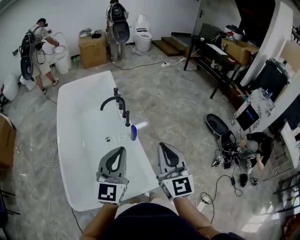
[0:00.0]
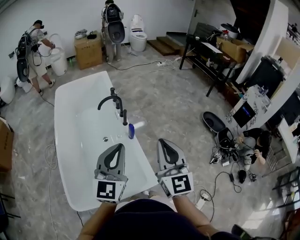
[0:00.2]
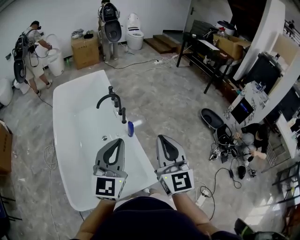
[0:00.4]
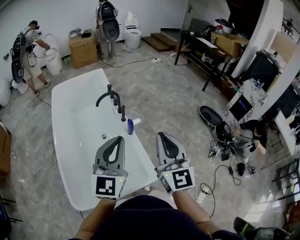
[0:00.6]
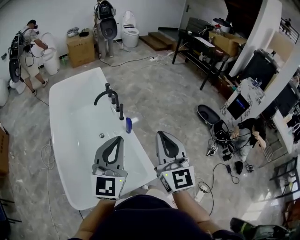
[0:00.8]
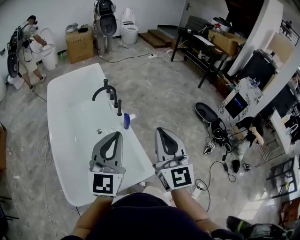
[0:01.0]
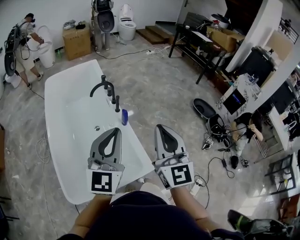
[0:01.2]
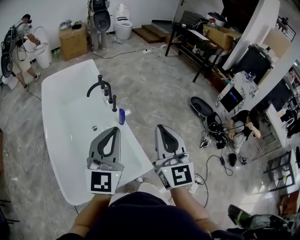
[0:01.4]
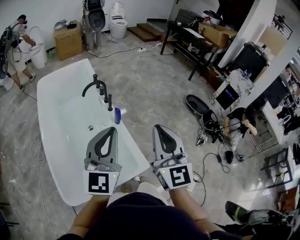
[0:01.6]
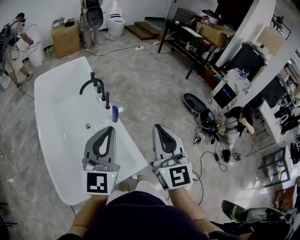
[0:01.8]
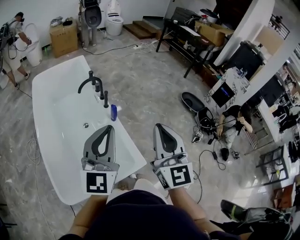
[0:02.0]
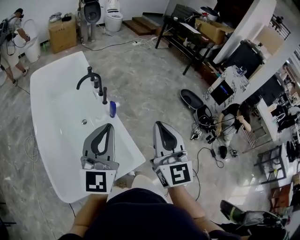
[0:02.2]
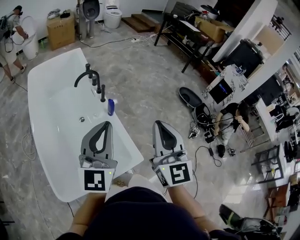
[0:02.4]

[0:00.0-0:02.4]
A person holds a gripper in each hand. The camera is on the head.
0:00.0 to 0:01.2: The left gripper changes place by roughly 5 cm; the right gripper shifts by roughly 5 cm.
0:01.2 to 0:02.4: There are only small adjustments of the grippers.

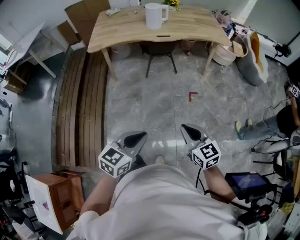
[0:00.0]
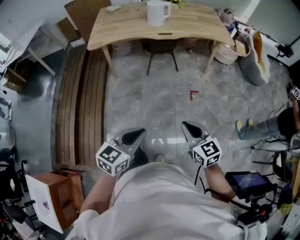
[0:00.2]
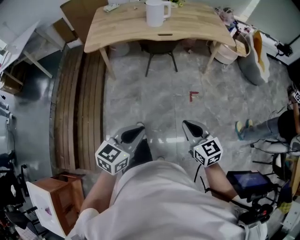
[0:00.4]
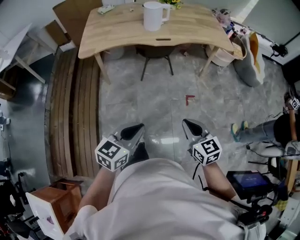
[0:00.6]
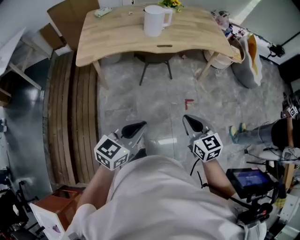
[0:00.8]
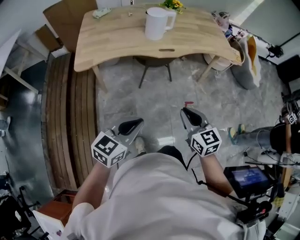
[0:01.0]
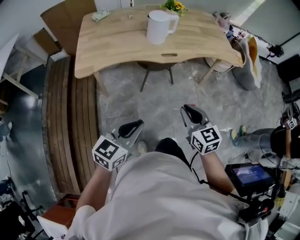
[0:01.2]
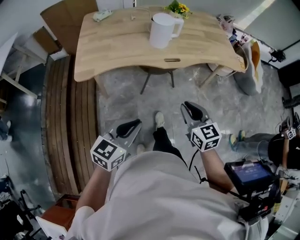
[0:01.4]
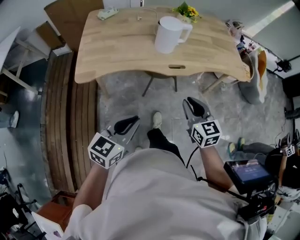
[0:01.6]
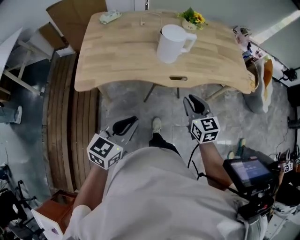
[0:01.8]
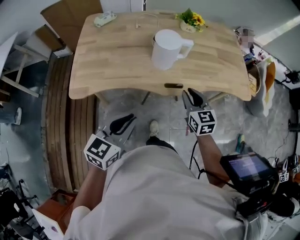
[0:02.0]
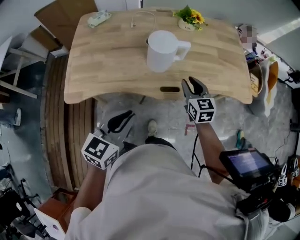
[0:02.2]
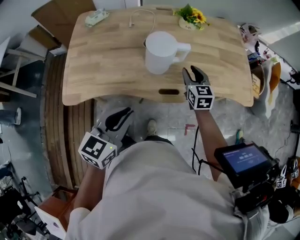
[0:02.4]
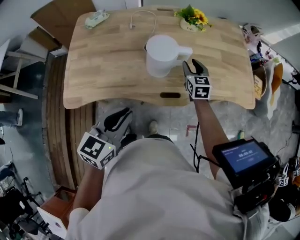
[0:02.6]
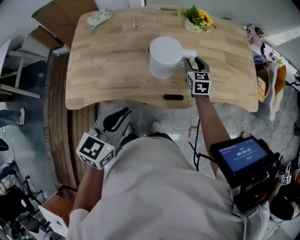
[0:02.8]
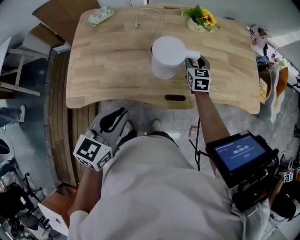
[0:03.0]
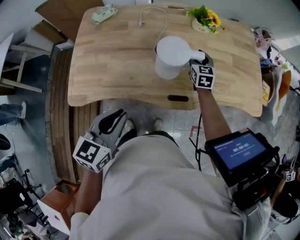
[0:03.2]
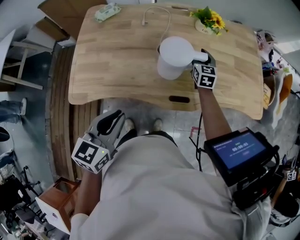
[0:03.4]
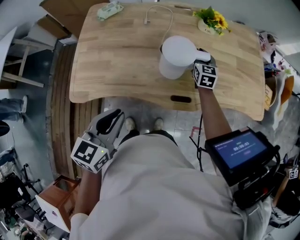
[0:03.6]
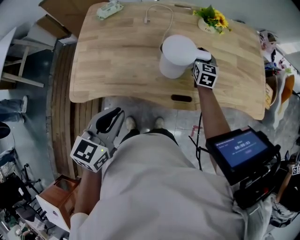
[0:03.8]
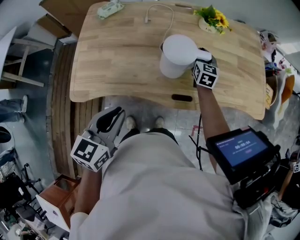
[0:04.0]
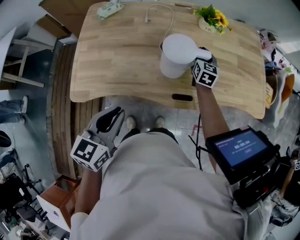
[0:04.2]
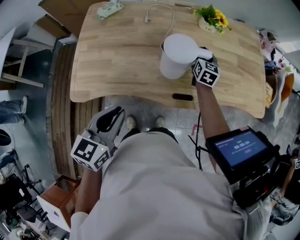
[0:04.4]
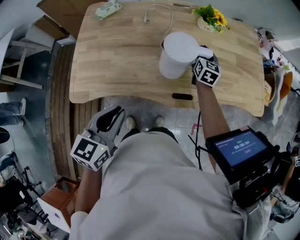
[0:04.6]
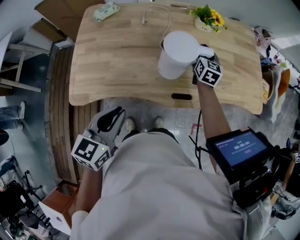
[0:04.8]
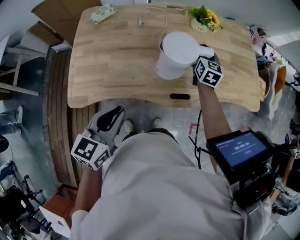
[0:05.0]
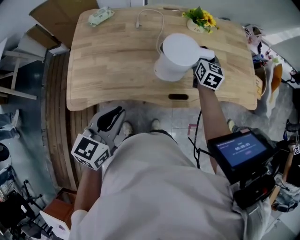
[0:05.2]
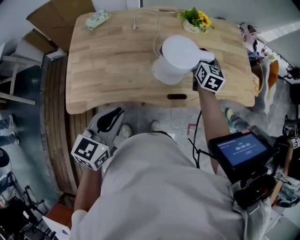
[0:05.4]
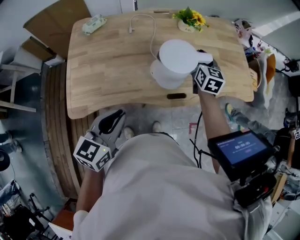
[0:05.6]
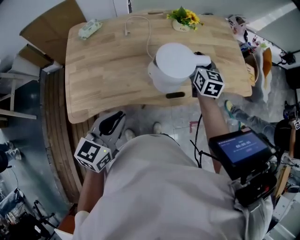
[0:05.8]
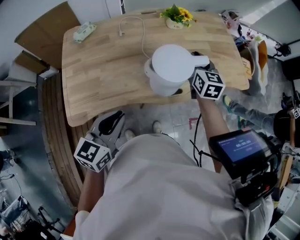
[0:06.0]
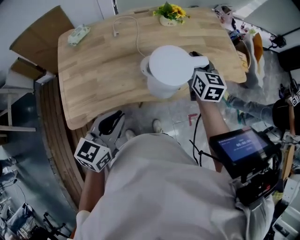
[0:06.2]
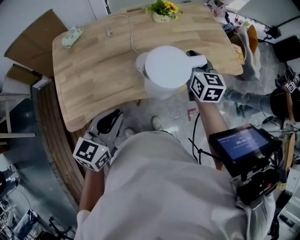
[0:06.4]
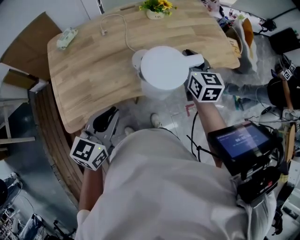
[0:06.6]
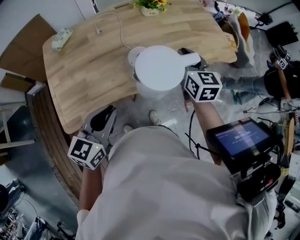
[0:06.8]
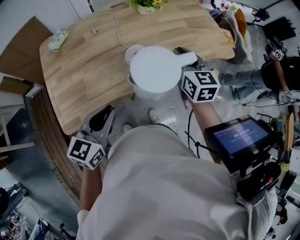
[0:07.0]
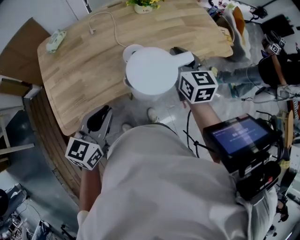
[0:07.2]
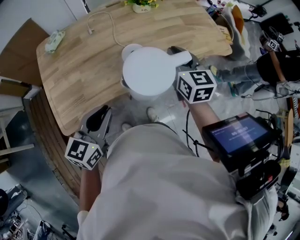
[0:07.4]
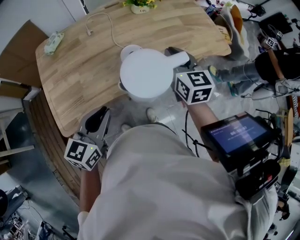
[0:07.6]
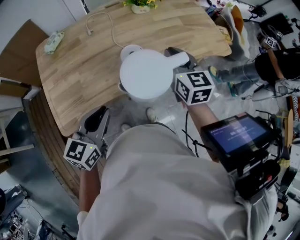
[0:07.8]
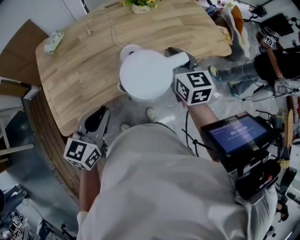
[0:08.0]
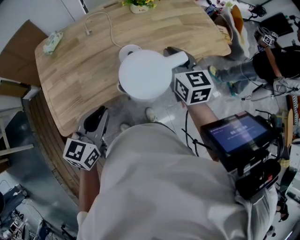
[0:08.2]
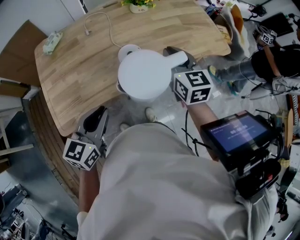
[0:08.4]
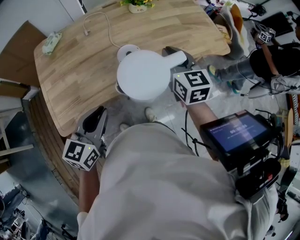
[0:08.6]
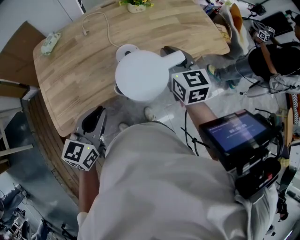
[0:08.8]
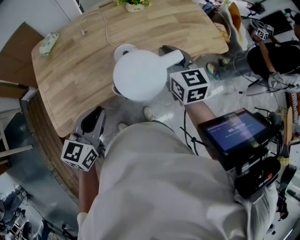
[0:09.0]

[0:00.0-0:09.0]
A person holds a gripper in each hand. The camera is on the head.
0:00.0 to 0:01.6: The pair of grippers is taken forward and to the left, about 50 cm.
0:01.6 to 0:03.0: The right gripper moves forward, approximately 50 cm, and opens up. The left gripper heads forward, covering approximately 30 cm.
0:03.0 to 0:04.4: The right gripper closes its fingers.
0:04.4 to 0:06.0: The right gripper shifts about 20 cm upward and backward.
0:06.0 to 0:07.6: The right gripper travels backward by approximately 10 cm.
0:07.6 to 0:09.0: The two grippers keep their place.

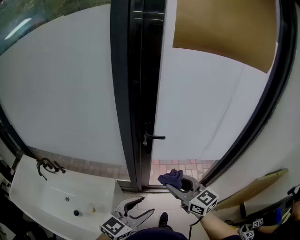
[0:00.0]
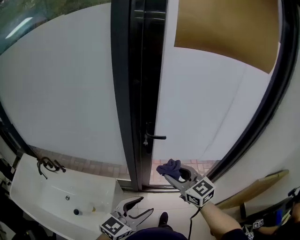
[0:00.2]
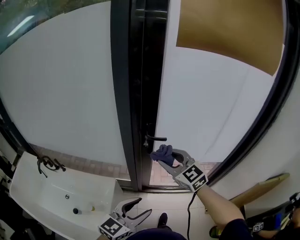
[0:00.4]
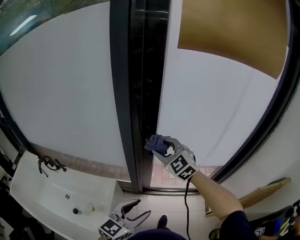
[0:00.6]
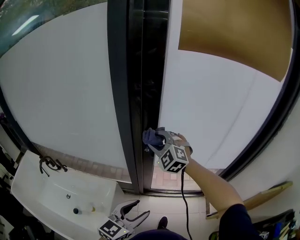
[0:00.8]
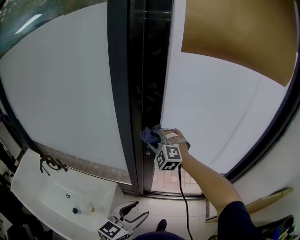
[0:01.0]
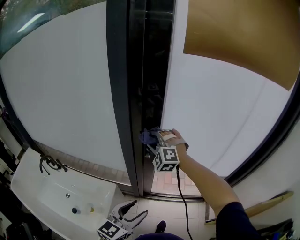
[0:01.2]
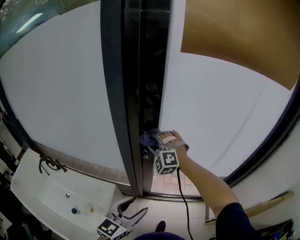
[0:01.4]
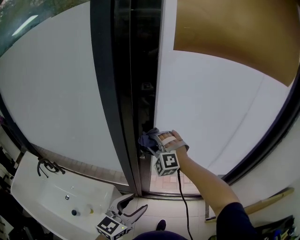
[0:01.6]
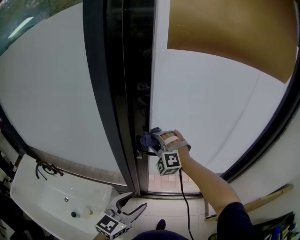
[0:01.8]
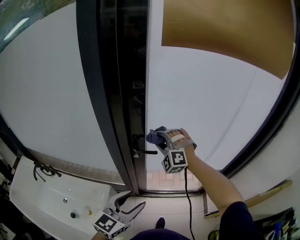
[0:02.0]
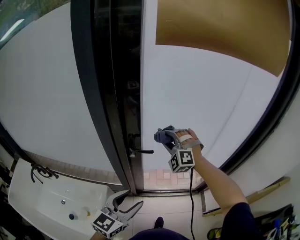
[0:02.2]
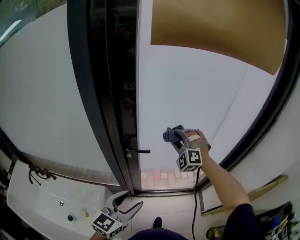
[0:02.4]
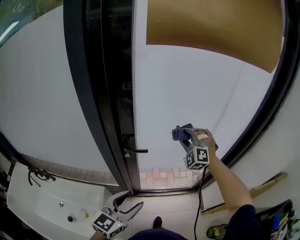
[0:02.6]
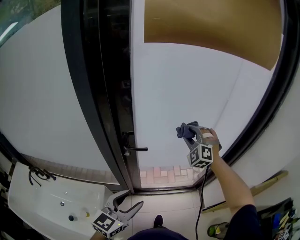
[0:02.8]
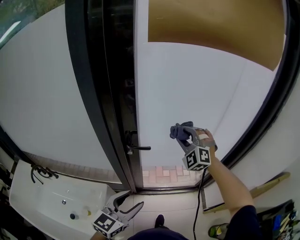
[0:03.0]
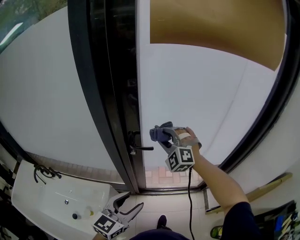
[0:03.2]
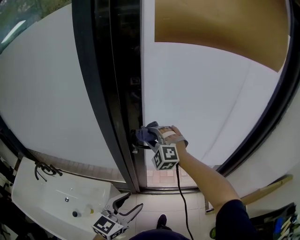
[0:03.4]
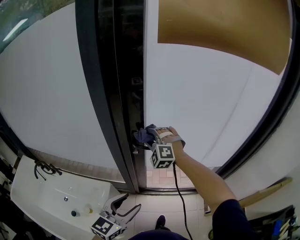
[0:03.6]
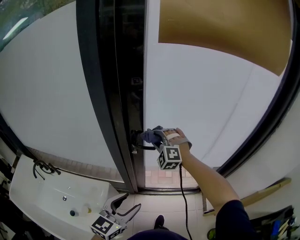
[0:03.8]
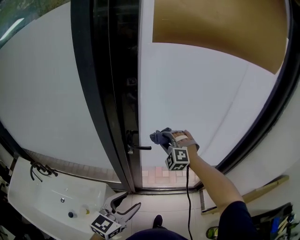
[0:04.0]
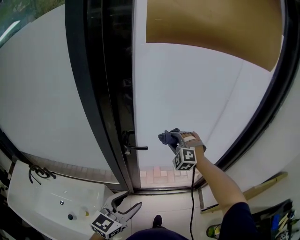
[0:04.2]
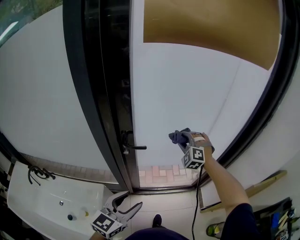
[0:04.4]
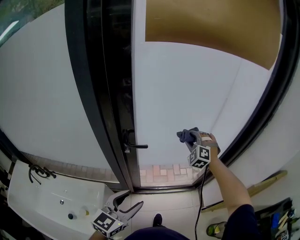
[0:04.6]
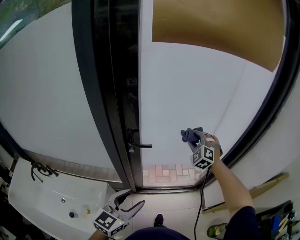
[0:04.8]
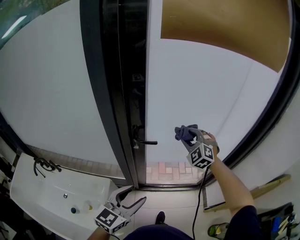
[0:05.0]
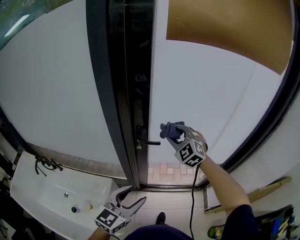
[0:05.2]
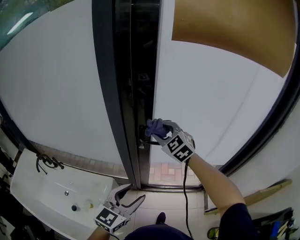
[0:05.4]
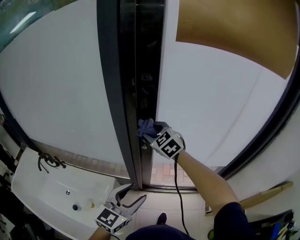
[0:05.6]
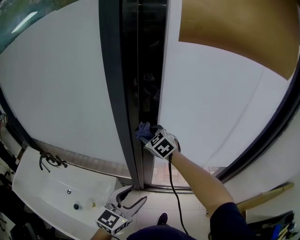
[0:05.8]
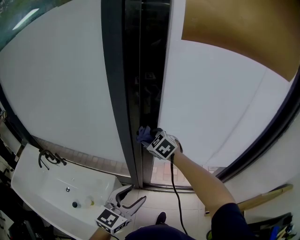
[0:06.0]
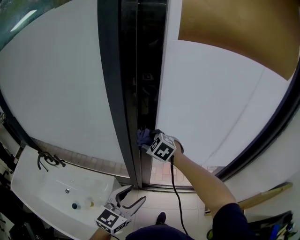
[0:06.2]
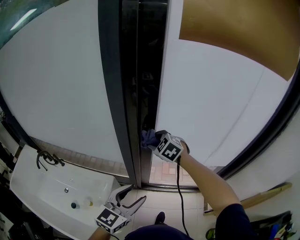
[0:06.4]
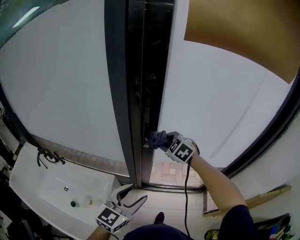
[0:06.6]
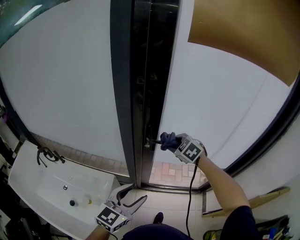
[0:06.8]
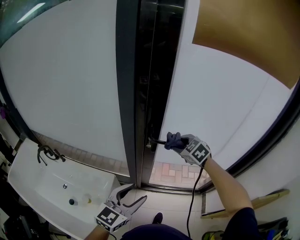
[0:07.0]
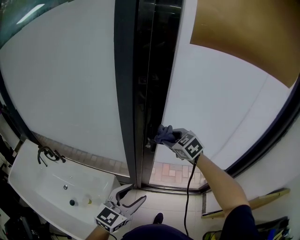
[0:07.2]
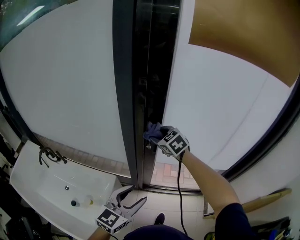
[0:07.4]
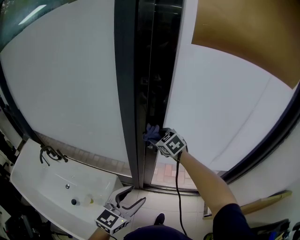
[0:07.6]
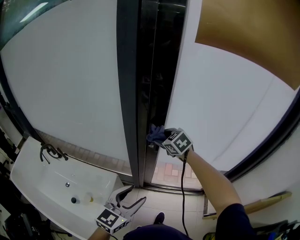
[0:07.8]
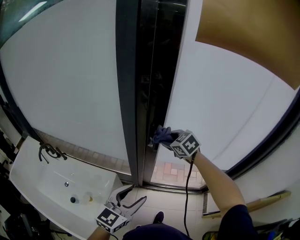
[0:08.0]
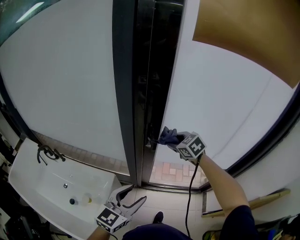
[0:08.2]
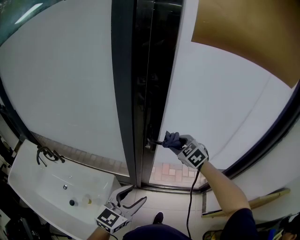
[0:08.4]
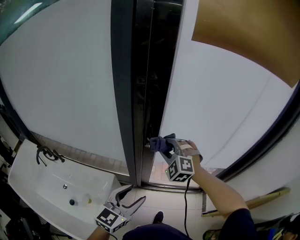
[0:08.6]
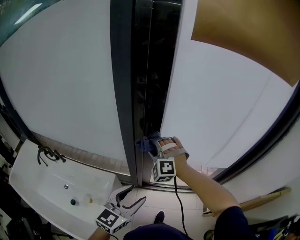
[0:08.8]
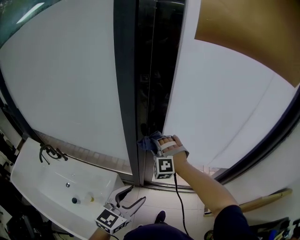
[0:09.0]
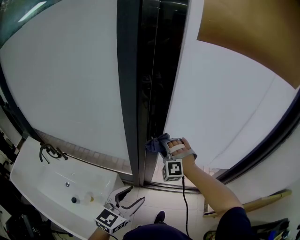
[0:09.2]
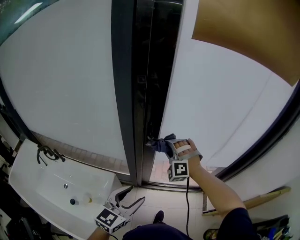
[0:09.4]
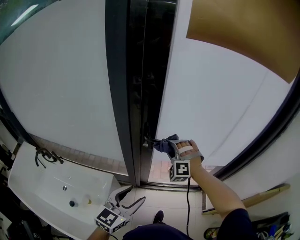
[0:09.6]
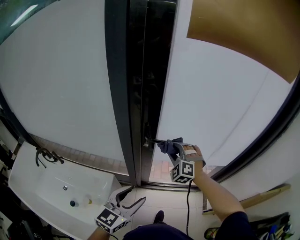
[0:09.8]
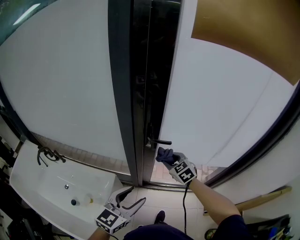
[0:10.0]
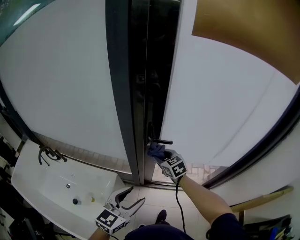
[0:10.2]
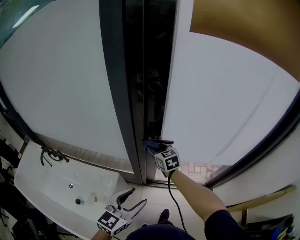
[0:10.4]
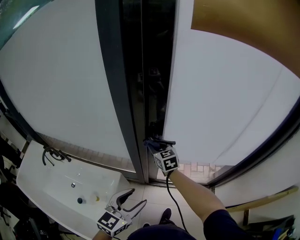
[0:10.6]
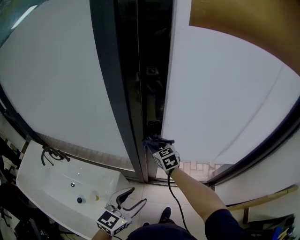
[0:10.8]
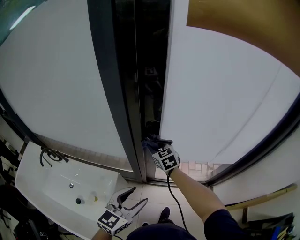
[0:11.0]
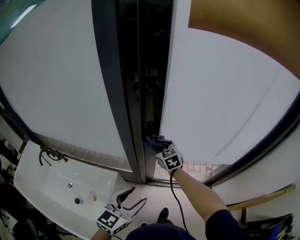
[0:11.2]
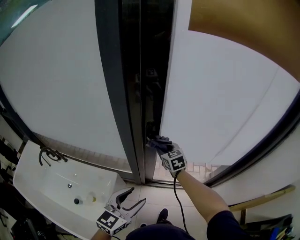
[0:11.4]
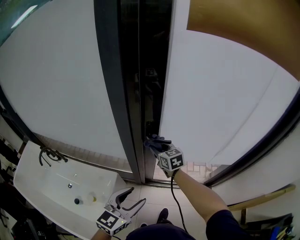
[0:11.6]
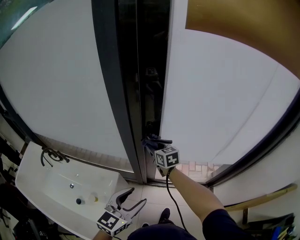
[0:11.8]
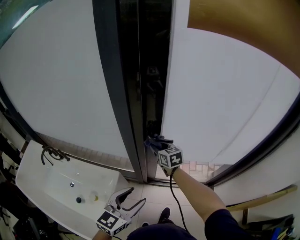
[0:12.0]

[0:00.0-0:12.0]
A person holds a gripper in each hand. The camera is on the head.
0:00.0 to 0:01.6: The left gripper shifts approximately 15 cm forward. Meanwhile the right gripper travels forward by roughly 30 cm, and twists some 80 degrees counterclockwise, seen from behind.
0:01.6 to 0:03.0: The right gripper travels to the right by about 20 cm, and swivels about 20 degrees.
0:03.0 to 0:04.4: The right gripper heads downward, covering roughly 5 cm, and travels to the left and back again, approximately 20 cm each way.
0:04.4 to 0:06.0: The right gripper goes upward and returns, some 10 cm each way, and changes its angle by approximately 50 degrees. Meanwhile the left gripper ends up approximately 5 cm from where it was.
0:06.0 to 0:07.6: The right gripper reaches some 15 cm to the right, then returns.
0:07.6 to 0:09.0: The right gripper reaches approximately 10 cm to the right, then returns, and rotates around the line of its fingers by some 60 degrees, counterclockwise from behind.
0:09.0 to 0:10.4: The right gripper is displaced downward by roughly 5 cm, moves about 10 cm to the right and comes back, and rotates around the line of its fingers by roughly 80 degrees, clockwise from behind.
0:10.4 to 0:12.0: The grippers stay close to where they were, moving slightly.
